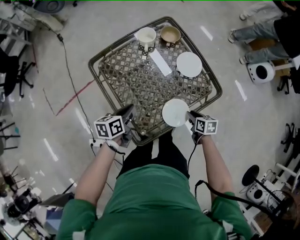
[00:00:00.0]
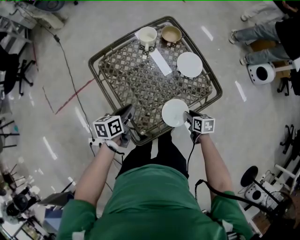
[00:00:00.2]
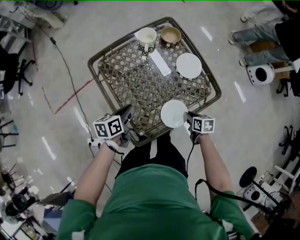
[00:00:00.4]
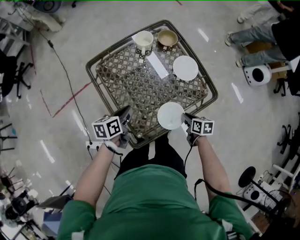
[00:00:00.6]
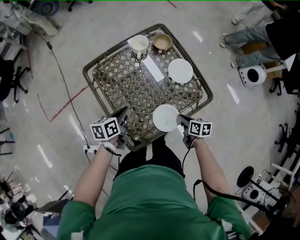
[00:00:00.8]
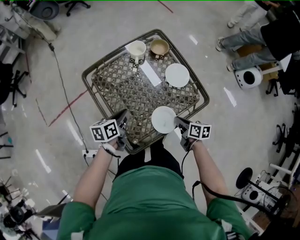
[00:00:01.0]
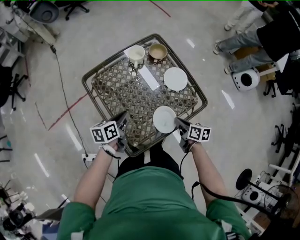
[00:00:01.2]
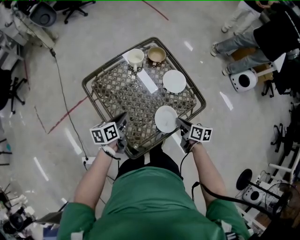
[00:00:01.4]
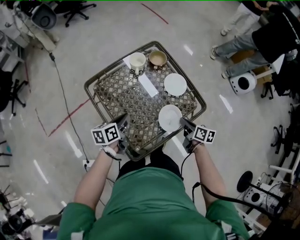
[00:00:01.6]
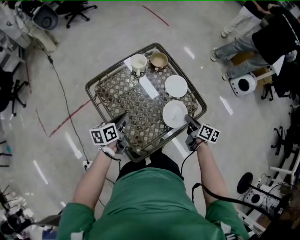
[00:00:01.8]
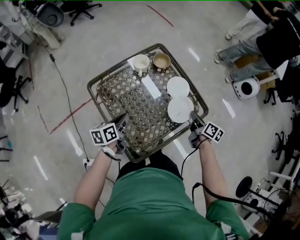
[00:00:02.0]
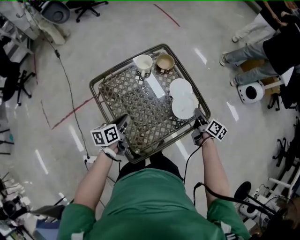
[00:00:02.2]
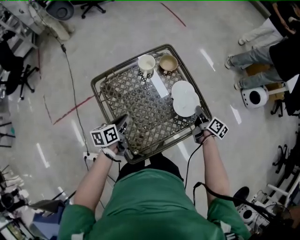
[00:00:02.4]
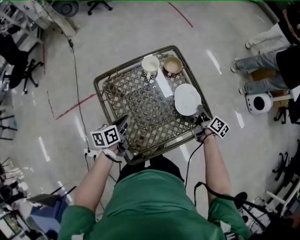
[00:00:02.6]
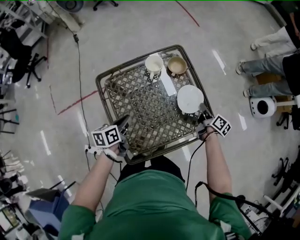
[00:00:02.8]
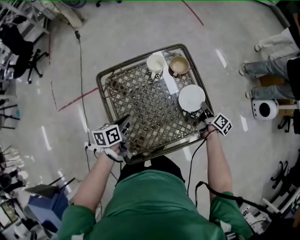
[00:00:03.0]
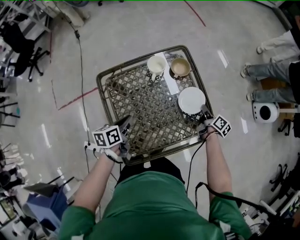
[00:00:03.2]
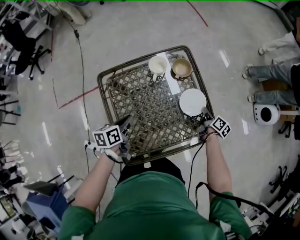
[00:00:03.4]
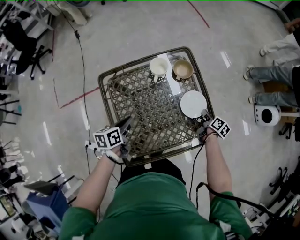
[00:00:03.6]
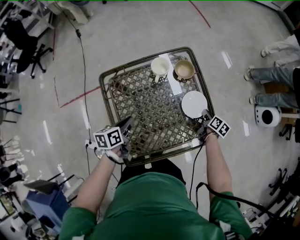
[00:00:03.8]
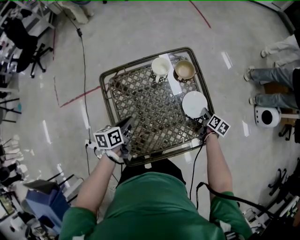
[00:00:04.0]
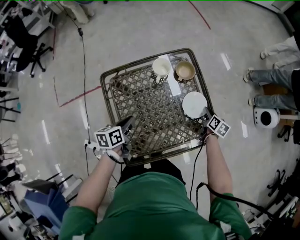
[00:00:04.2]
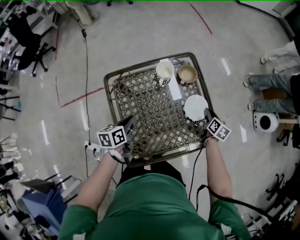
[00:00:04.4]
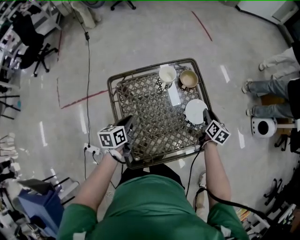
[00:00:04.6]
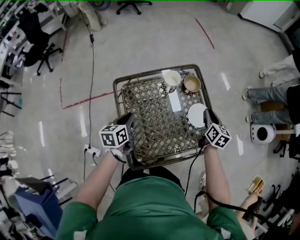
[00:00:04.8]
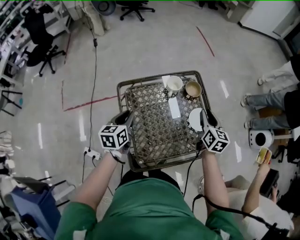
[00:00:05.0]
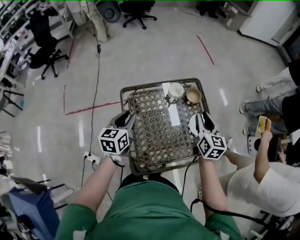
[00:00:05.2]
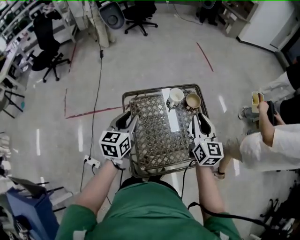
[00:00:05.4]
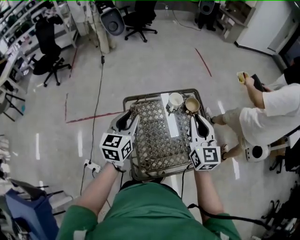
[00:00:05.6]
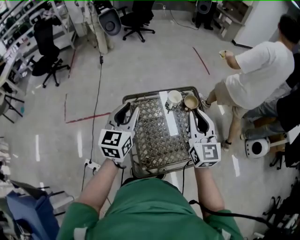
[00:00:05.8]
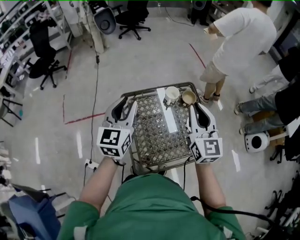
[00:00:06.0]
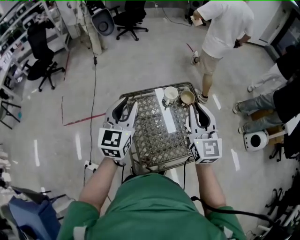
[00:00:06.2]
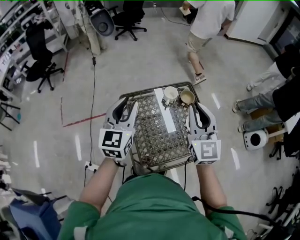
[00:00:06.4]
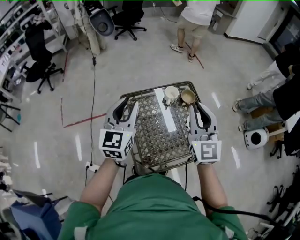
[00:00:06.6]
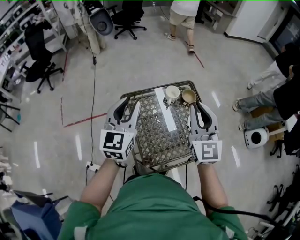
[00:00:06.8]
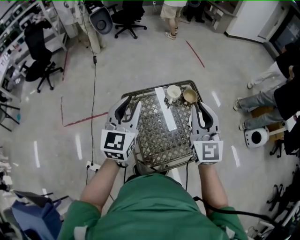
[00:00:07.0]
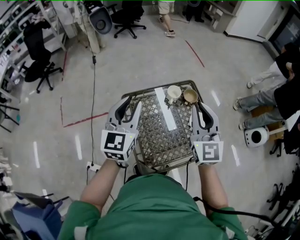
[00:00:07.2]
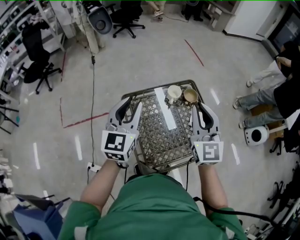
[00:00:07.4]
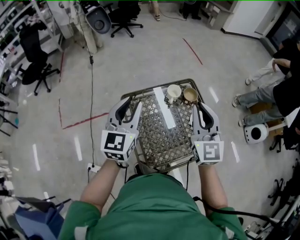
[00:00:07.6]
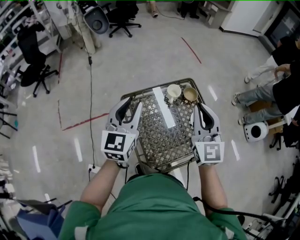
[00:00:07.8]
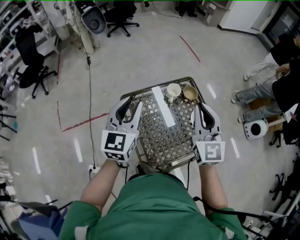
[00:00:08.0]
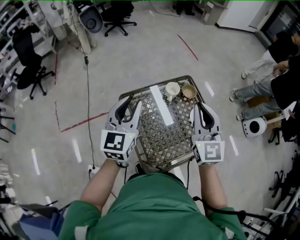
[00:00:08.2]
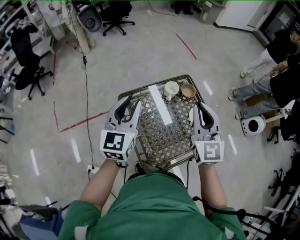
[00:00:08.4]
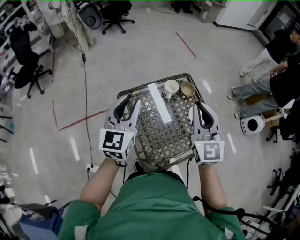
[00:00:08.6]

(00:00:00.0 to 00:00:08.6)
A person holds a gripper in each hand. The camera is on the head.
00:00:00.0 - 00:00:01.4: The right gripper heads upward, covering approximately 10 cm, swivels about 20 degrees, and closes.
00:00:01.4 - 00:00:02.8: The right gripper goes about 20 cm forward.
00:00:02.8 - 00:00:04.4: The right gripper moves about 10 cm downward and comes back, rotates roughly 30 degrees, and opens its fingers.
00:00:04.4 - 00:00:05.8: The right gripper shifts some 50 cm upward and to the left, points its fingers about 40 degrees further upward, and closes up; the left gripper moves upward, approximately 30 cm, and rotates about 50 degrees.
00:00:05.8 - 00:00:08.6: The grippers make only small movements.

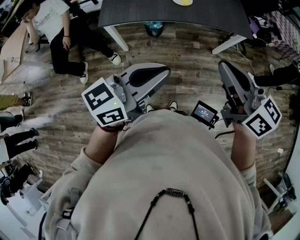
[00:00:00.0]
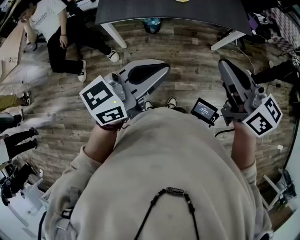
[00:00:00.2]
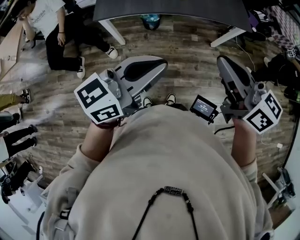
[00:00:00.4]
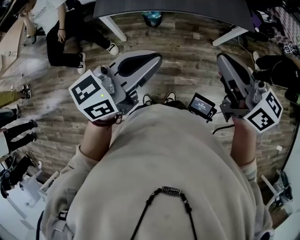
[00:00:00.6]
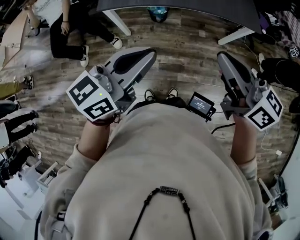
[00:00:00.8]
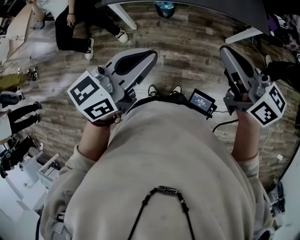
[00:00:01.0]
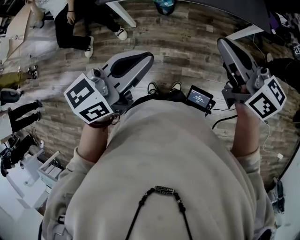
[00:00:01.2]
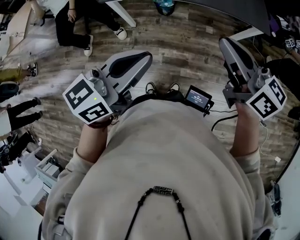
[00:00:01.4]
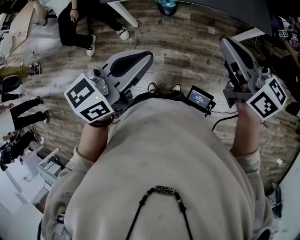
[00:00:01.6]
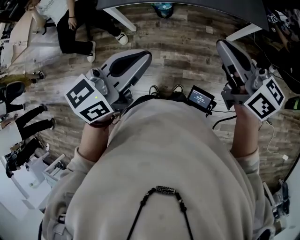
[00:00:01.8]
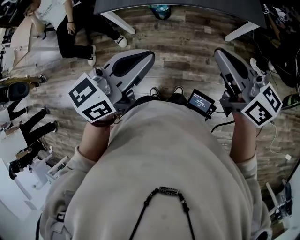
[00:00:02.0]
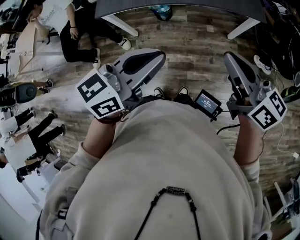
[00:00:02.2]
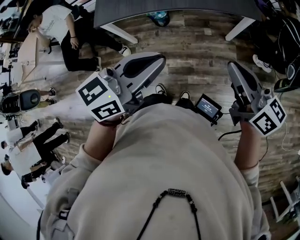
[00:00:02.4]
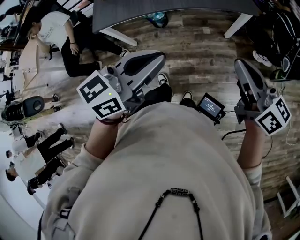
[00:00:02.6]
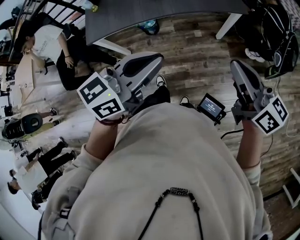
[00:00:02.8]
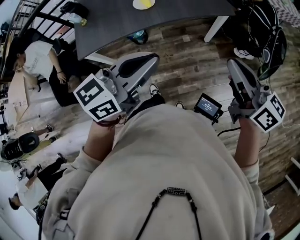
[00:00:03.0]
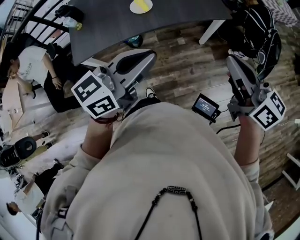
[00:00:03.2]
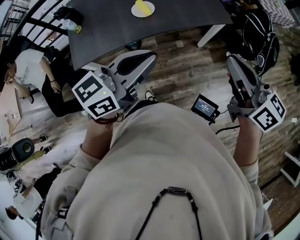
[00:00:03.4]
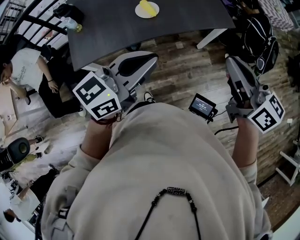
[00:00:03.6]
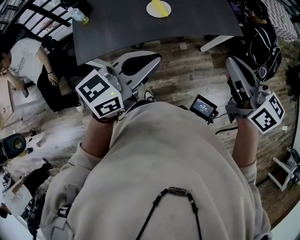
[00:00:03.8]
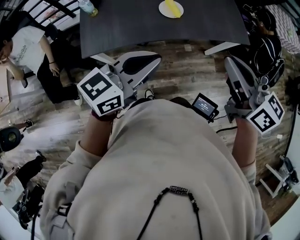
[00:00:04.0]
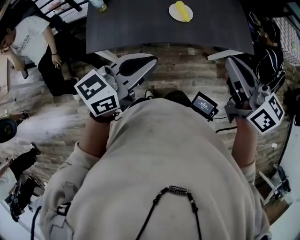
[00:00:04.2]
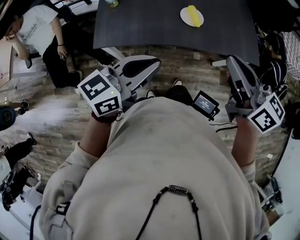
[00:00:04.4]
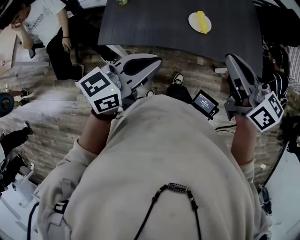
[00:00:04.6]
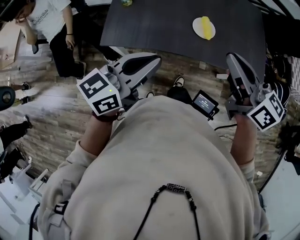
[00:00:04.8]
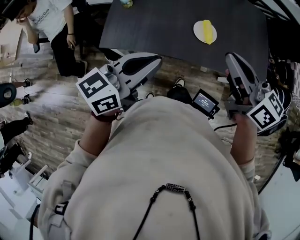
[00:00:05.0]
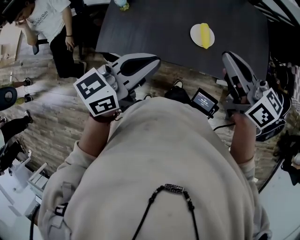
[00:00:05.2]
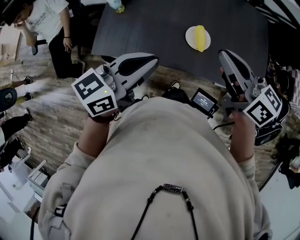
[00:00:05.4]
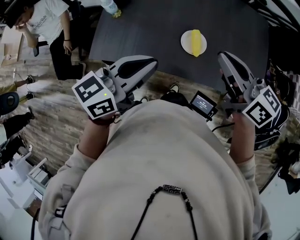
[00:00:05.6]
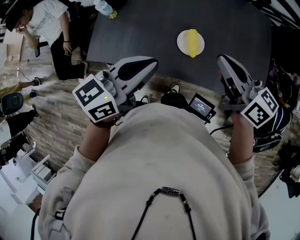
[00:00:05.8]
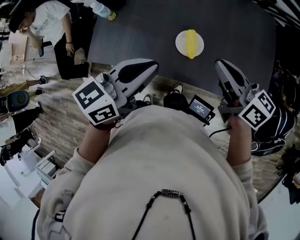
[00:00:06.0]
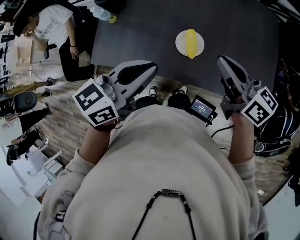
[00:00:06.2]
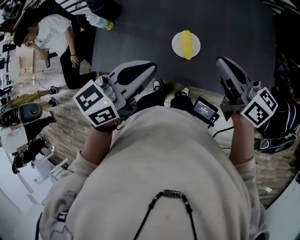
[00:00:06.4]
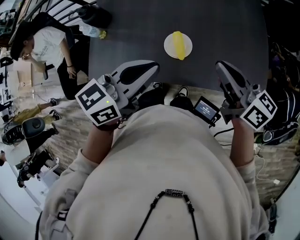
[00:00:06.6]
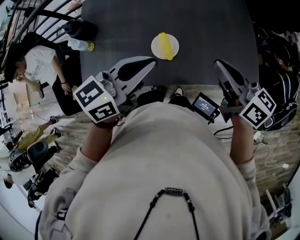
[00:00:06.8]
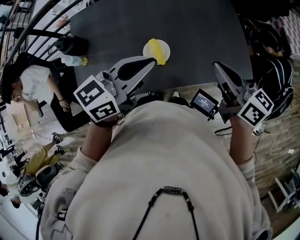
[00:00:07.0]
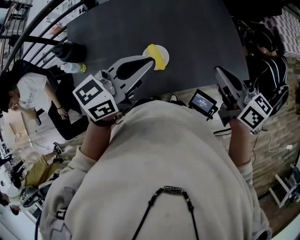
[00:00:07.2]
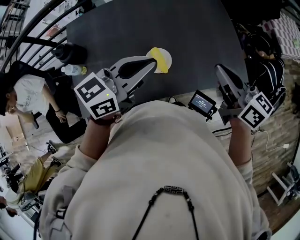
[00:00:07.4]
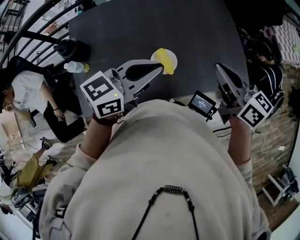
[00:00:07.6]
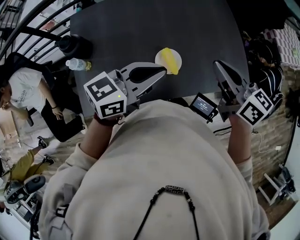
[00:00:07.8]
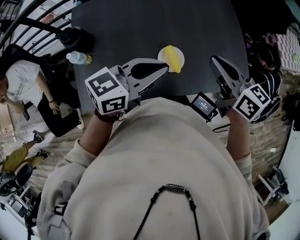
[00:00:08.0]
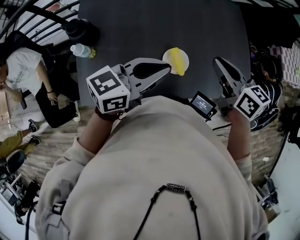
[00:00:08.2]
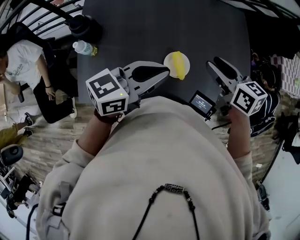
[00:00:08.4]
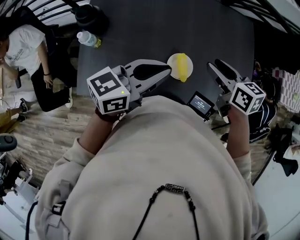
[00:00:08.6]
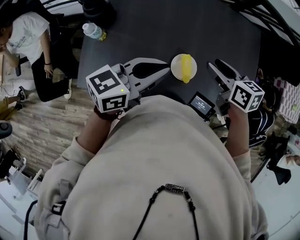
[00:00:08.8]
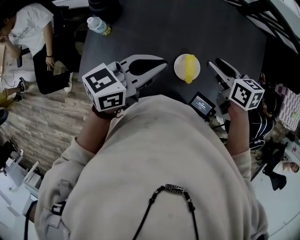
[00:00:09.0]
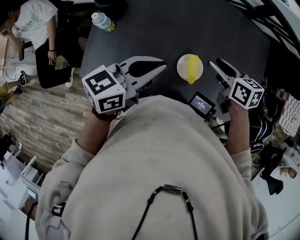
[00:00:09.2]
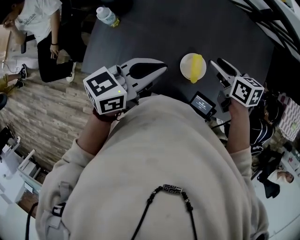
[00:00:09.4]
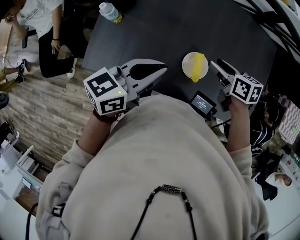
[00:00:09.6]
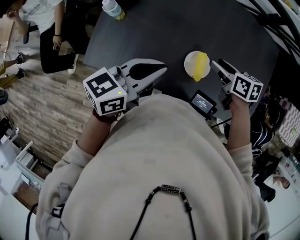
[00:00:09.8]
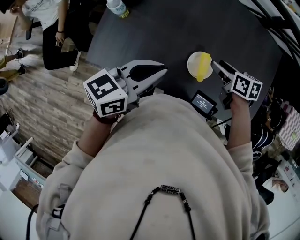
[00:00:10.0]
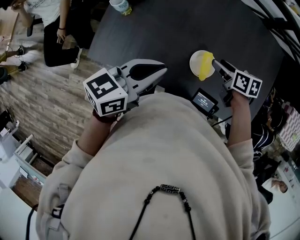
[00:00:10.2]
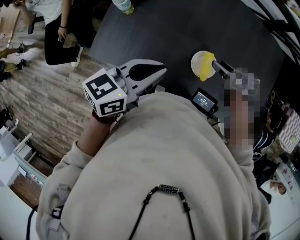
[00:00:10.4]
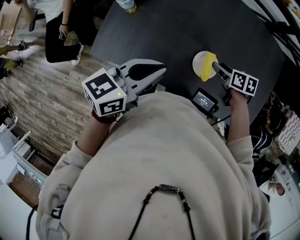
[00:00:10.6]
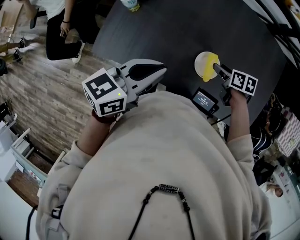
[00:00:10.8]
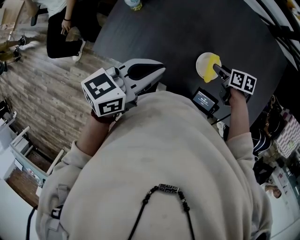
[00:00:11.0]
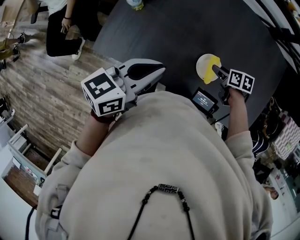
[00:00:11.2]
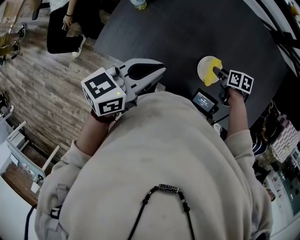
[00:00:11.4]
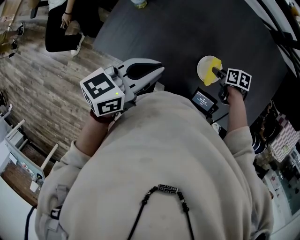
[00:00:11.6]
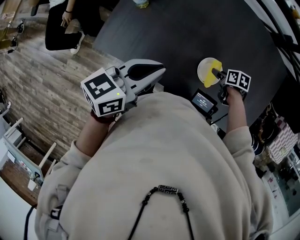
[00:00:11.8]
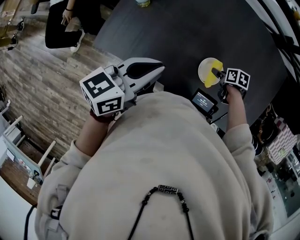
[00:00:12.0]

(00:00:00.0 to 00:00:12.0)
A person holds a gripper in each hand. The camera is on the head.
00:00:00.0 - 00:00:01.6: The right gripper is displaced downward and to the right by approximately 10 cm.
00:00:01.6 - 00:00:03.0: The right gripper moves to the right, approximately 15 cm, and turns by some 20 degrees. The left gripper shifts about 15 cm to the right and forward, and rotates approximately 20 degrees.
00:00:03.0 - 00:00:04.4: The right gripper moves to the left and forward, roughly 35 cm. Meanwhile the left gripper heads to the left, covering some 25 cm.
00:00:04.4 - 00:00:06.0: The two grippers go roughly 25 cm forward and to the right. The right gripper rotates approximately 20 degrees.
00:00:06.0 - 00:00:07.6: The right gripper swivels approximately 30 degrees. The left gripper ends up about 5 cm from where it was, and turns by roughly 30 degrees.
00:00:07.6 - 00:00:09.0: The right gripper travels downward, to the left and forward by approximately 20 cm, rotates roughly 40 degrees, and opens up; the left gripper heads to the left, covering about 10 cm, and turns by approximately 30 degrees.
00:00:09.0 - 00:00:10.4: The right gripper moves downward, some 10 cm. Meanwhile the left gripper is displaced backward by about 5 cm.
00:00:10.4 - 00:00:12.0: The right gripper goes about 10 cm downward, and turns by approximately 20 degrees.

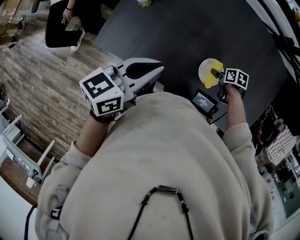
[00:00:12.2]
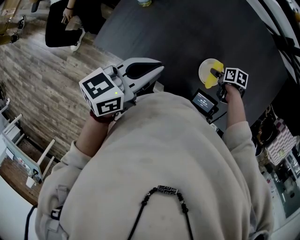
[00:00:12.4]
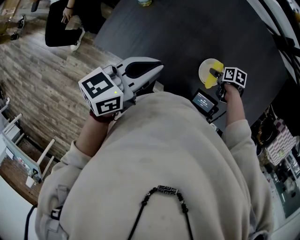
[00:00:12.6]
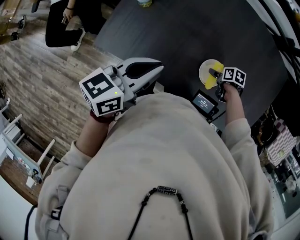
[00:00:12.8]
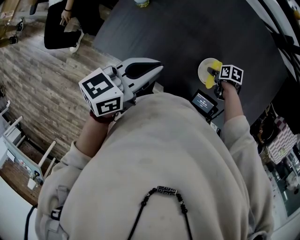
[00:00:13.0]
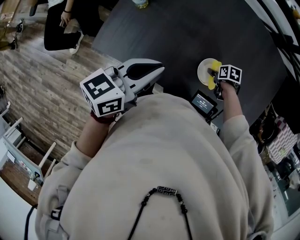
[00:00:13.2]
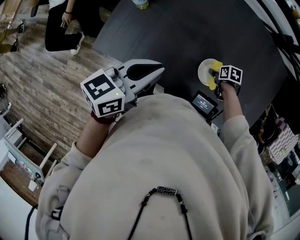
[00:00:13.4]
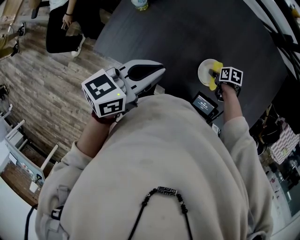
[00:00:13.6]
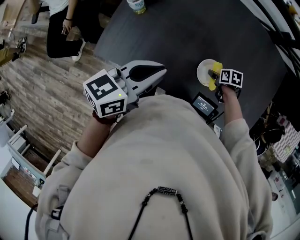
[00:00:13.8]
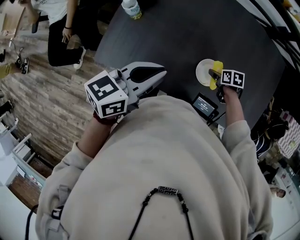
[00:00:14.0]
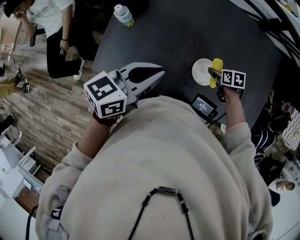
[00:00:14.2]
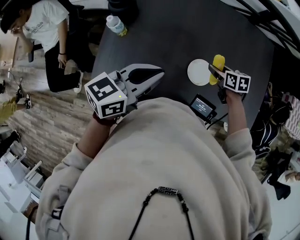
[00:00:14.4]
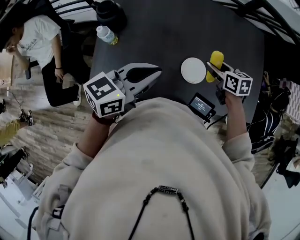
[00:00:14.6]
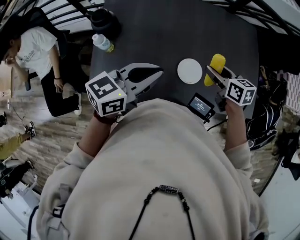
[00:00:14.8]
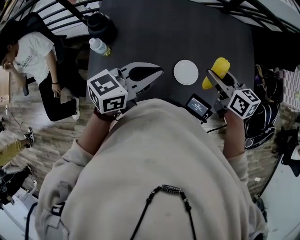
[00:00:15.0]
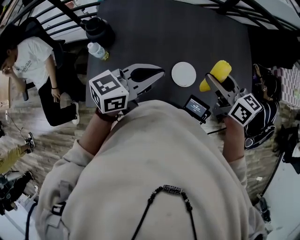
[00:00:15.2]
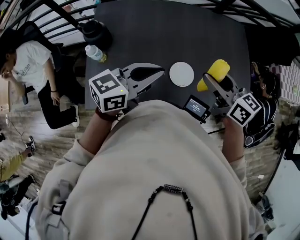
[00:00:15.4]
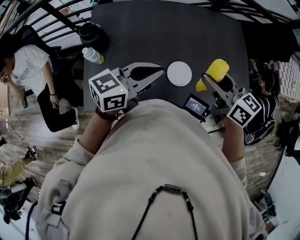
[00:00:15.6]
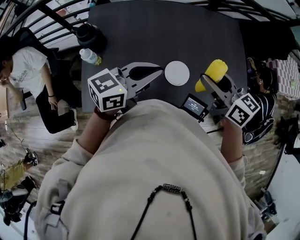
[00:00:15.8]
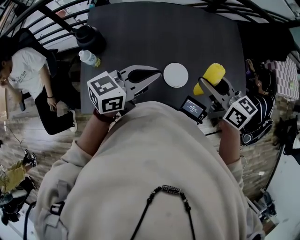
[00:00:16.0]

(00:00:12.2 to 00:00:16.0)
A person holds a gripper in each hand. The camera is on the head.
00:00:12.2 - 00:00:13.4: There are only small adjustments of the grippers.
00:00:13.4 - 00:00:14.8: The left gripper changes place by roughly 10 cm, and rotates roughly 30 degrees, while the right gripper shifts roughly 25 cm upward, and angles its fingers upward, by about 40 degrees.
00:00:14.8 - 00:00:16.0: The right gripper heads upward and backward, covering about 10 cm.
